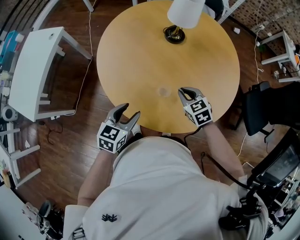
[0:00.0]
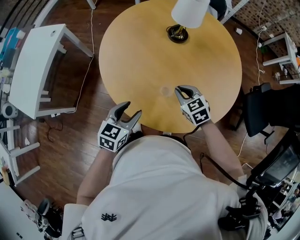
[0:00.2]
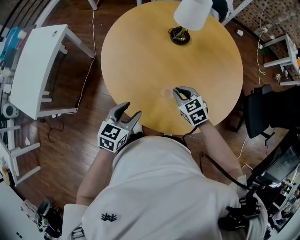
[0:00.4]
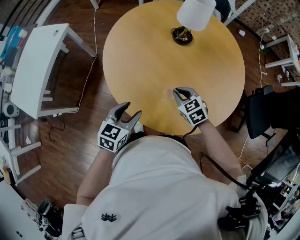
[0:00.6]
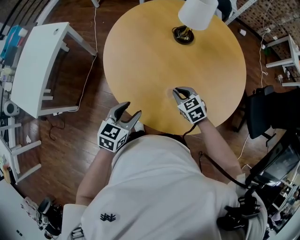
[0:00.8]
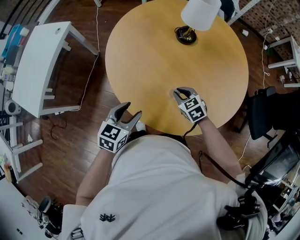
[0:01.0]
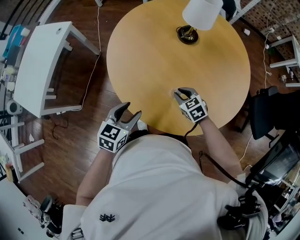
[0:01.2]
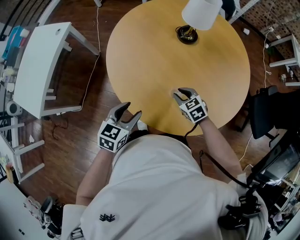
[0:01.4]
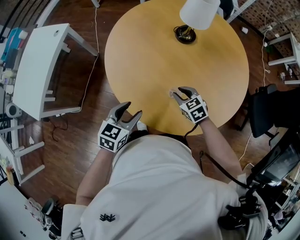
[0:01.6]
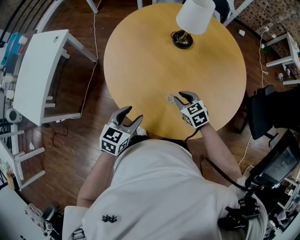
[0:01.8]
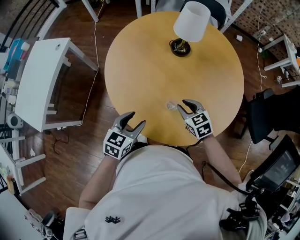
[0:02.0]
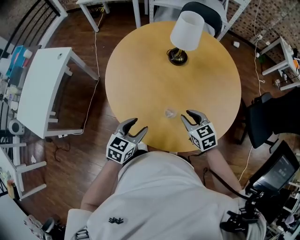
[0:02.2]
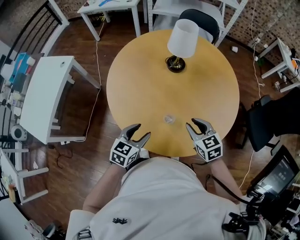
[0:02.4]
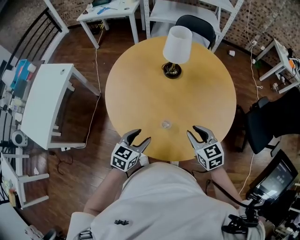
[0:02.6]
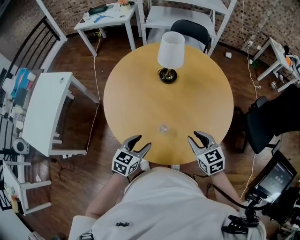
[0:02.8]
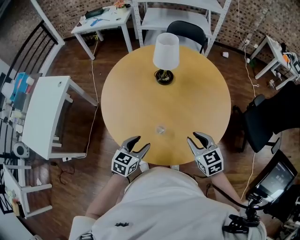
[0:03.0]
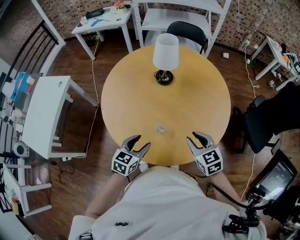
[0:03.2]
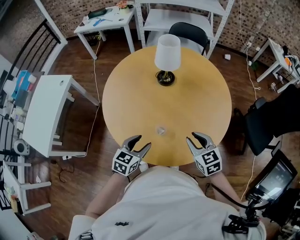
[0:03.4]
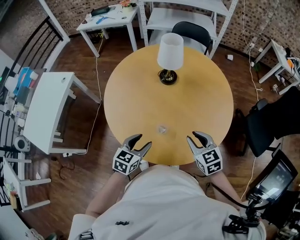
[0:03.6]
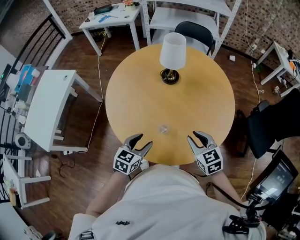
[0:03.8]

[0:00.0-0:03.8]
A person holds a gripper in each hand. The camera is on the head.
0:00.0 to 0:01.2: The right gripper is displaced downward and to the left by approximately 10 cm.
0:01.2 to 0:02.6: The left gripper moves to the right, about 5 cm; the right gripper travels upward and to the right by approximately 20 cm, and turns by some 20 degrees.
0:02.6 to 0:03.8: The grippers stay close to where they were, moving slightly.

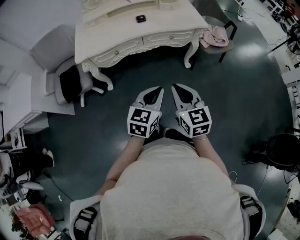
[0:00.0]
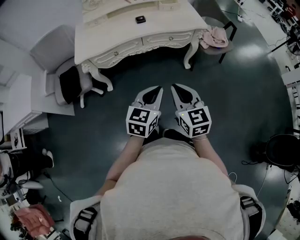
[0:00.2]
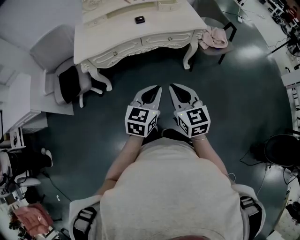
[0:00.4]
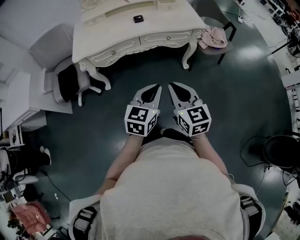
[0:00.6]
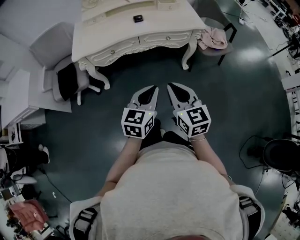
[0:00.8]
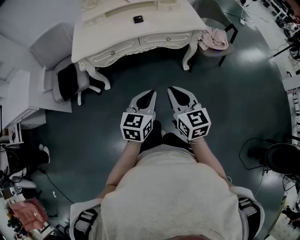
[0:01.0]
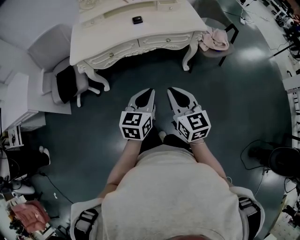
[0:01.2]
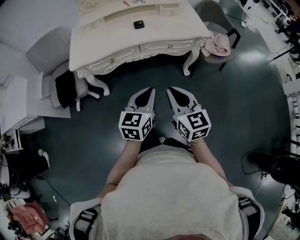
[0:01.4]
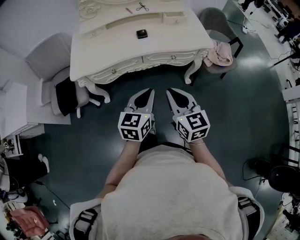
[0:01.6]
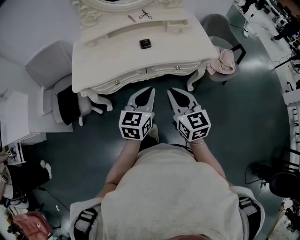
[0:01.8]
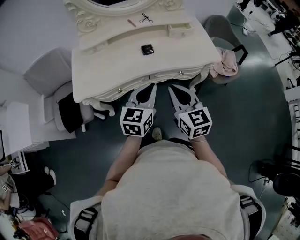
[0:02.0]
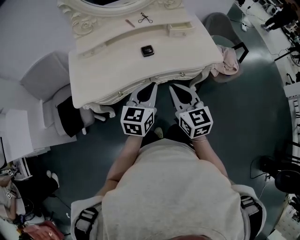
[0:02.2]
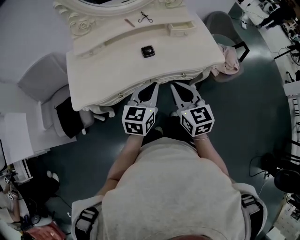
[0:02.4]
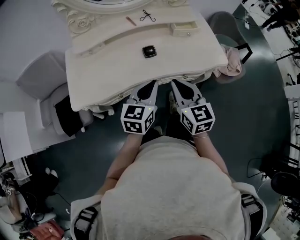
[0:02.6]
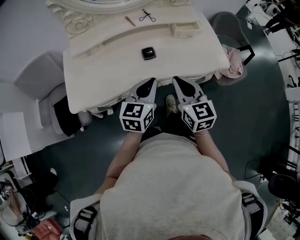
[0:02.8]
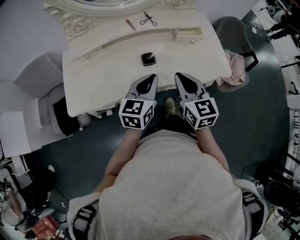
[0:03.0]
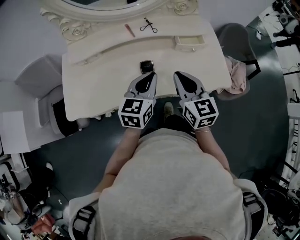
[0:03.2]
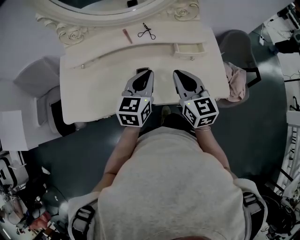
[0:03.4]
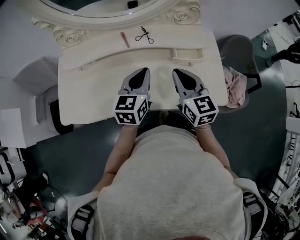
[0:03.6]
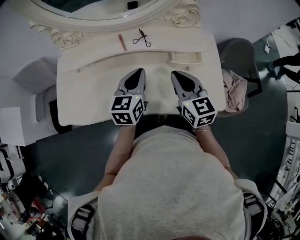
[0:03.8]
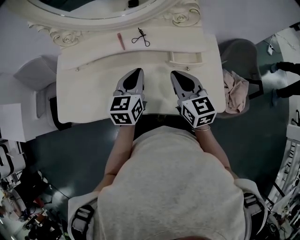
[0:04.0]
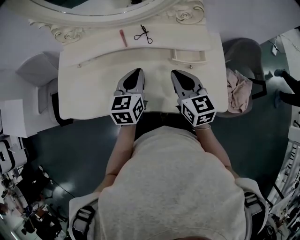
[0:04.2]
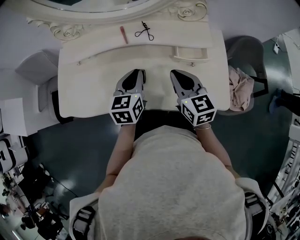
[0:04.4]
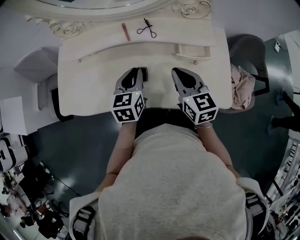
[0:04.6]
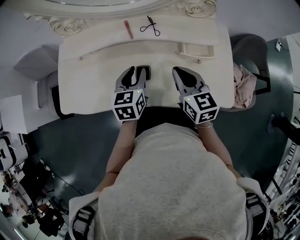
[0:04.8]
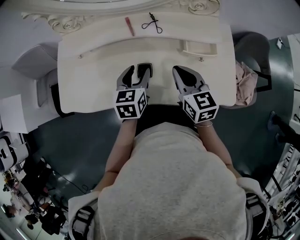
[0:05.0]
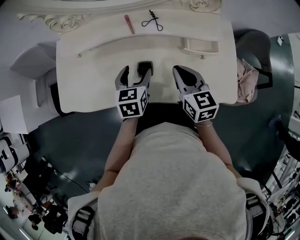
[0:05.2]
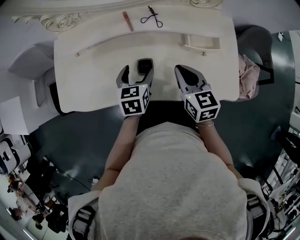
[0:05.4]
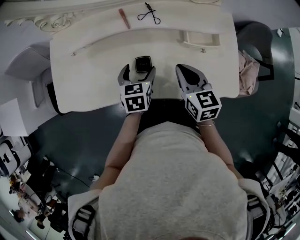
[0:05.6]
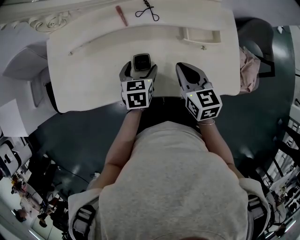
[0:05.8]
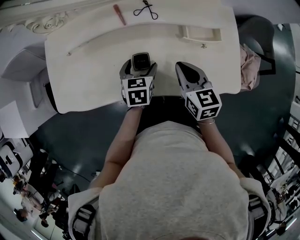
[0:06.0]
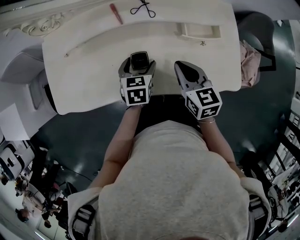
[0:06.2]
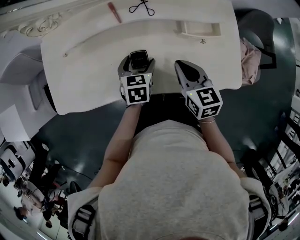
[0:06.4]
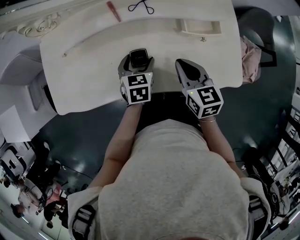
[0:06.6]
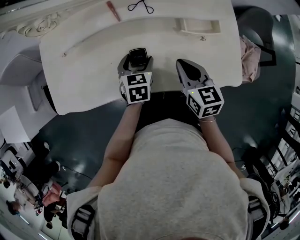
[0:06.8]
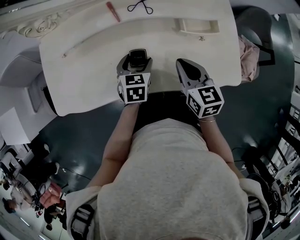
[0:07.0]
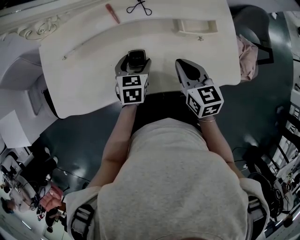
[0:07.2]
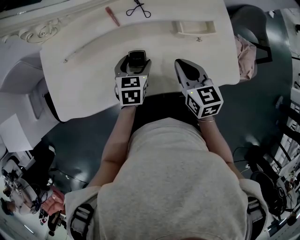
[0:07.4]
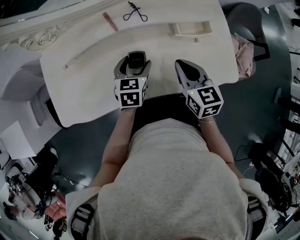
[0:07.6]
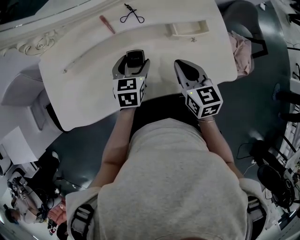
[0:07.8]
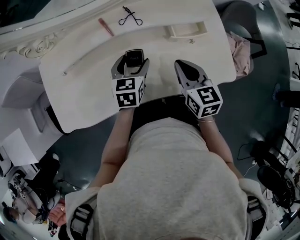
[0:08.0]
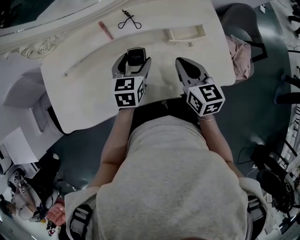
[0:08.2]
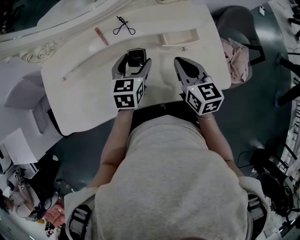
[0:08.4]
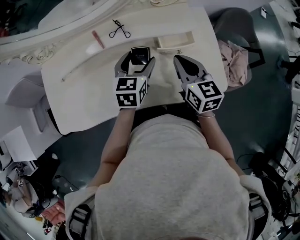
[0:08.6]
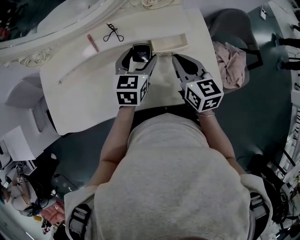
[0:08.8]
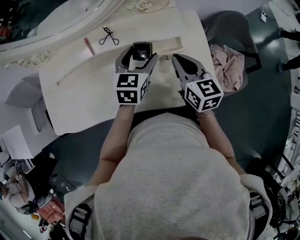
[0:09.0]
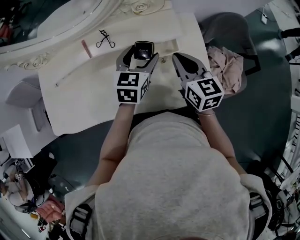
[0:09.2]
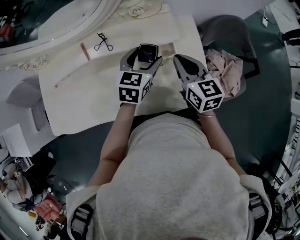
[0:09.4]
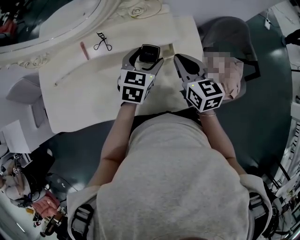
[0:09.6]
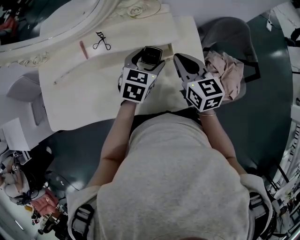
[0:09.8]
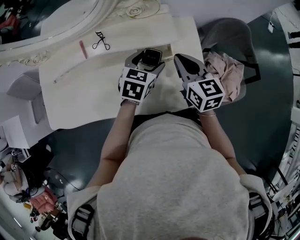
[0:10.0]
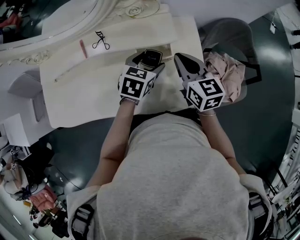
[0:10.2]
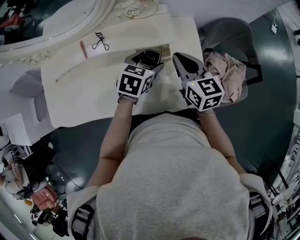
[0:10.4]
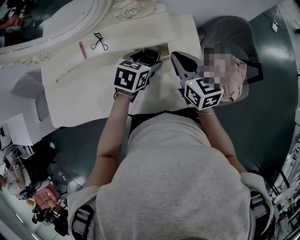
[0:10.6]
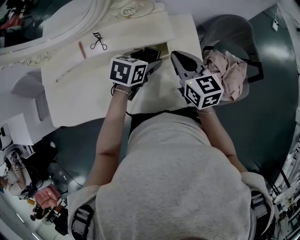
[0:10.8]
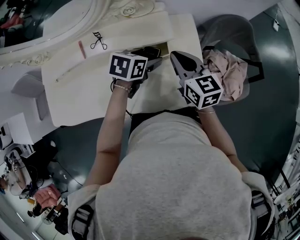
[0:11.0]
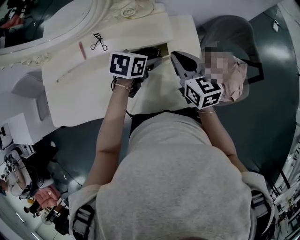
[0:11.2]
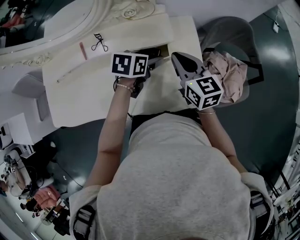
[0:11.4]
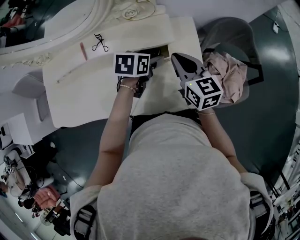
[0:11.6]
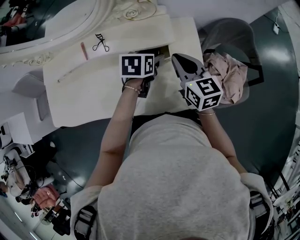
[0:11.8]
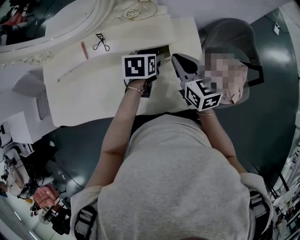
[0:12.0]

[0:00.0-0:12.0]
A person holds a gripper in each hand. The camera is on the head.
0:00.0 to 0:01.6: The two grippers go approximately 15 cm forward.
0:01.6 to 0:03.0: Both grippers move forward, some 30 cm.
0:03.0 to 0:04.4: The left gripper goes about 15 cm forward, and swivels roughly 20 degrees. Meanwhile the right gripper heads forward and to the right, covering about 15 cm.
0:04.4 to 0:06.0: The left gripper moves downward, about 10 cm, swivels approximately 20 degrees, and opens, while the right gripper goes roughly 5 cm downward.
0:06.0 to 0:07.6: There are only small adjustments of the grippers.
0:07.6 to 0:09.0: The right gripper heads to the right and forward, covering roughly 15 cm, while the left gripper travels to the right, upward and forward by roughly 20 cm.
0:09.0 to 0:10.4: The grippers both shift to the right by about 5 cm. The left gripper rotates approximately 20 degrees.
0:10.4 to 0:12.0: The left gripper changes its angle by some 20 degrees.

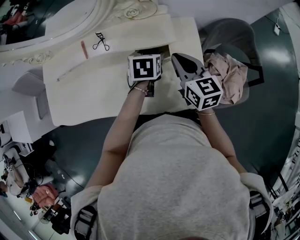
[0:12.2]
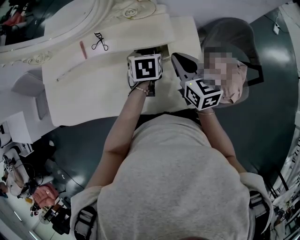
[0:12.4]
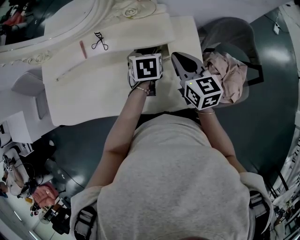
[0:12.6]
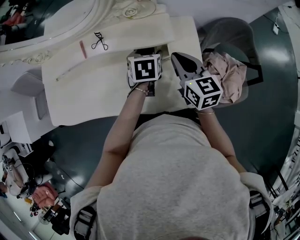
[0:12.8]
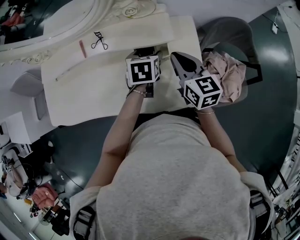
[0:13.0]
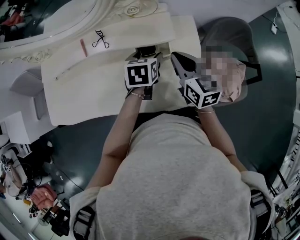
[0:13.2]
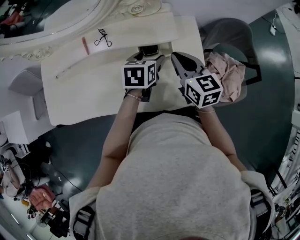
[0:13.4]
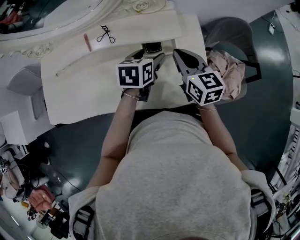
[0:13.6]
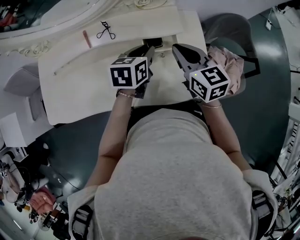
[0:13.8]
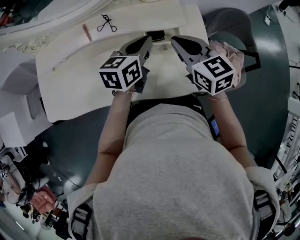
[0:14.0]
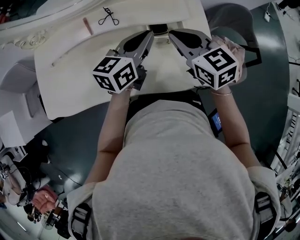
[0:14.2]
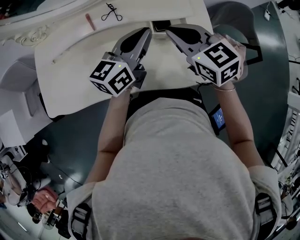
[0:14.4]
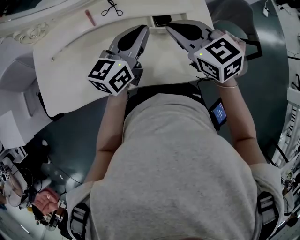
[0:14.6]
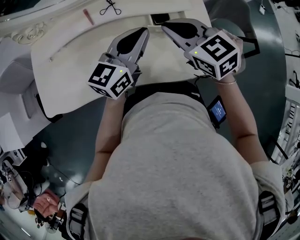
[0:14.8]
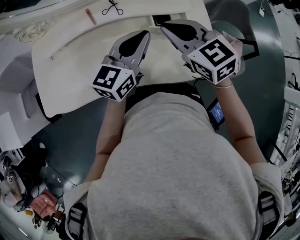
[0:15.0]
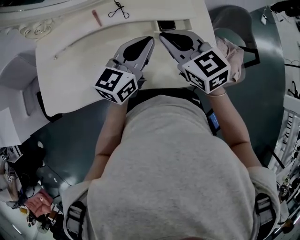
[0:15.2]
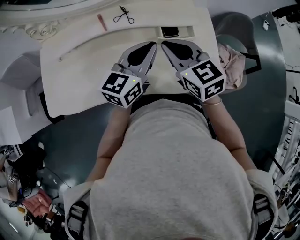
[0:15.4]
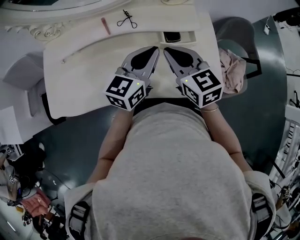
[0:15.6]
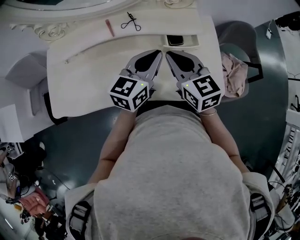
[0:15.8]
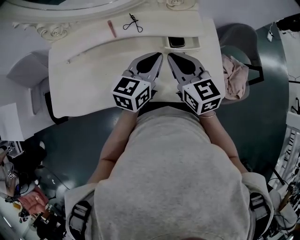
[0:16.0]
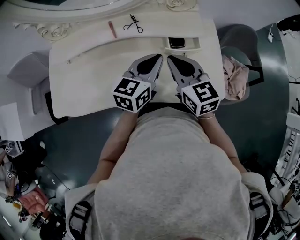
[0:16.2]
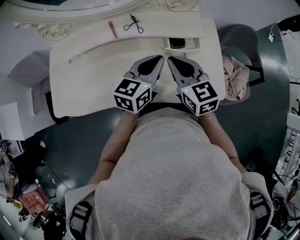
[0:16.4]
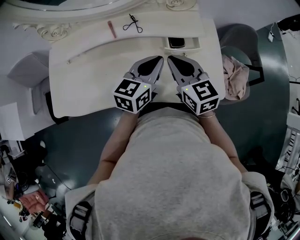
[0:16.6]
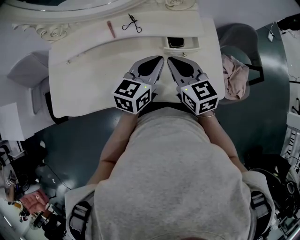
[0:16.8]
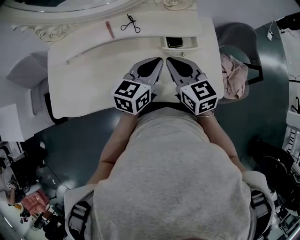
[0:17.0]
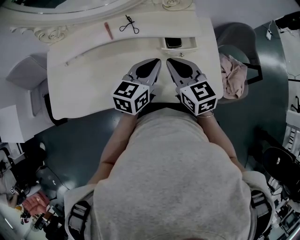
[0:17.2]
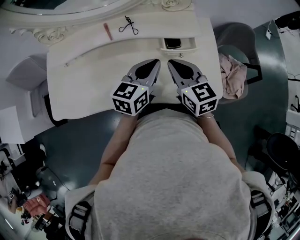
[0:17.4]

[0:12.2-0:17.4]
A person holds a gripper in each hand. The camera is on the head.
0:12.2 to 0:14.0: The right gripper goes about 5 cm to the left. The left gripper goes about 10 cm upward, angles its fingers upward, by some 30 degrees, and closes.
0:14.0 to 0:15.6: The right gripper travels to the left by about 10 cm. Meanwhile the left gripper moves backward and to the left, roughly 10 cm.
0:15.6 to 0:17.4: The grippers stay close to where they were, moving slightly.

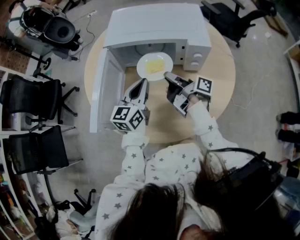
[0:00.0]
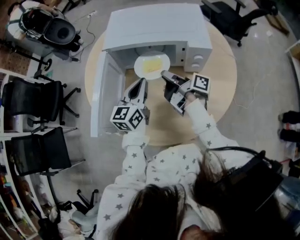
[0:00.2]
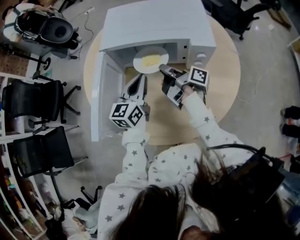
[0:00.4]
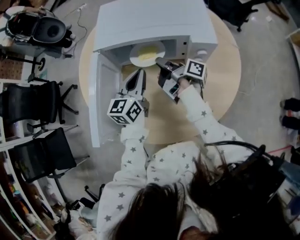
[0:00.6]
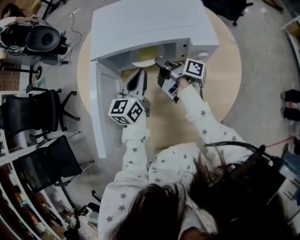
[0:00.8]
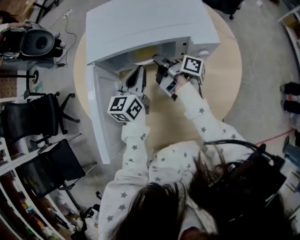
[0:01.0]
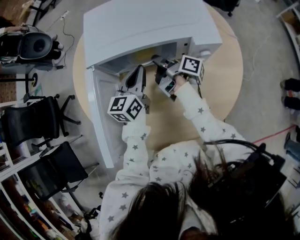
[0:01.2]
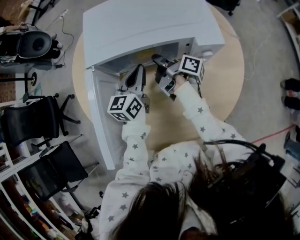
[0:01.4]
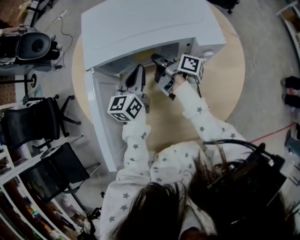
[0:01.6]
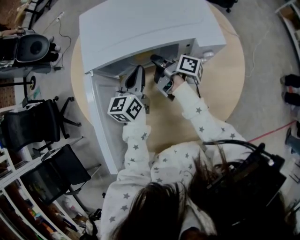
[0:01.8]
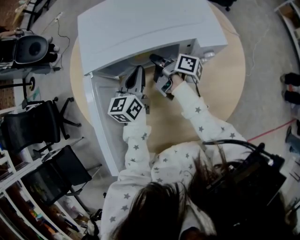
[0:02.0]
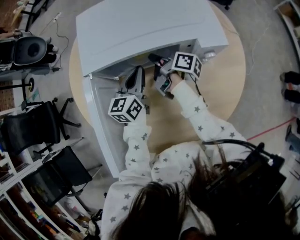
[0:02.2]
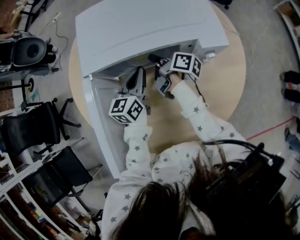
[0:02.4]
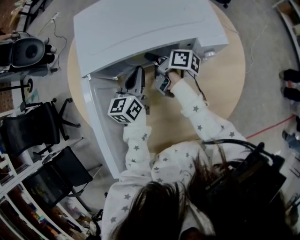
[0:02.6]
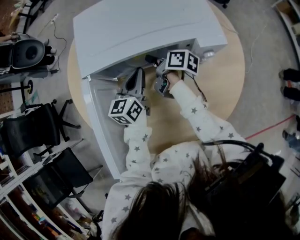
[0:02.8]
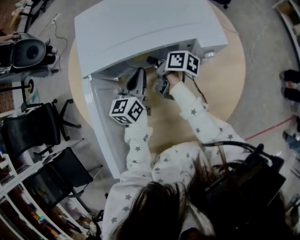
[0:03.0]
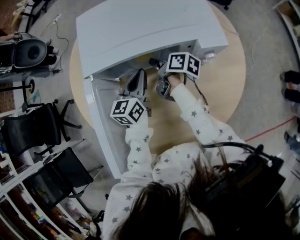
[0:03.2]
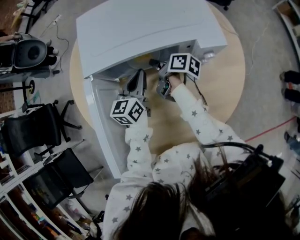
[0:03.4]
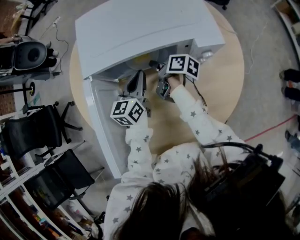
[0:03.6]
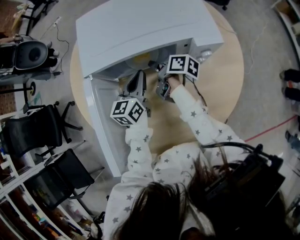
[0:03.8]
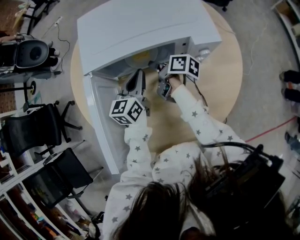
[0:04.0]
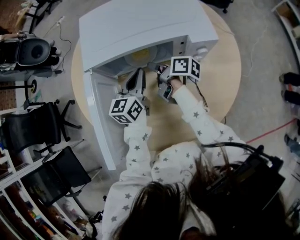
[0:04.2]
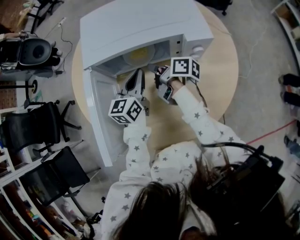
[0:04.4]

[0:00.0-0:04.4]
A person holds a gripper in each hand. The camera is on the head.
0:00.0 to 0:01.4: The left gripper changes place by roughly 15 cm.
